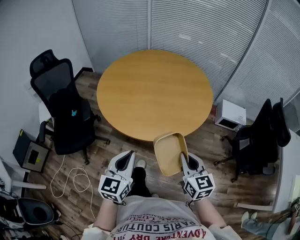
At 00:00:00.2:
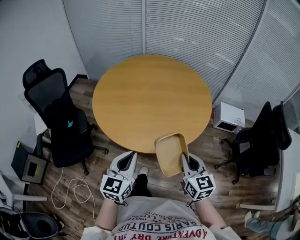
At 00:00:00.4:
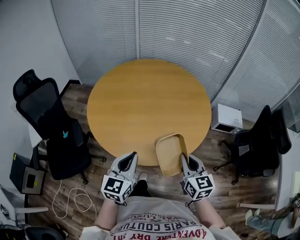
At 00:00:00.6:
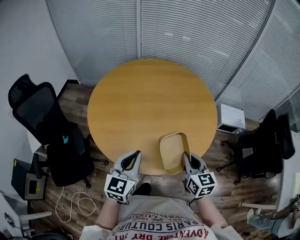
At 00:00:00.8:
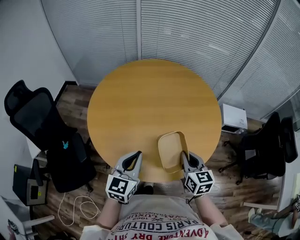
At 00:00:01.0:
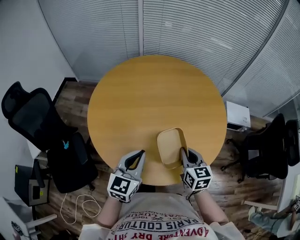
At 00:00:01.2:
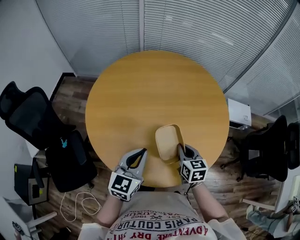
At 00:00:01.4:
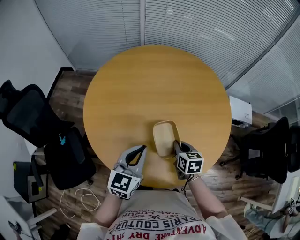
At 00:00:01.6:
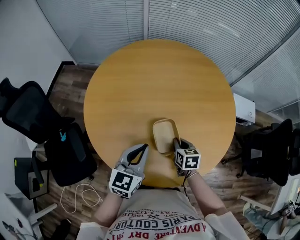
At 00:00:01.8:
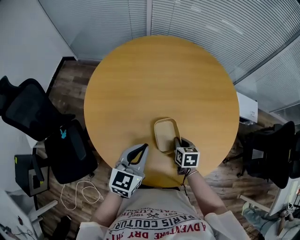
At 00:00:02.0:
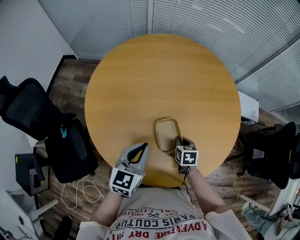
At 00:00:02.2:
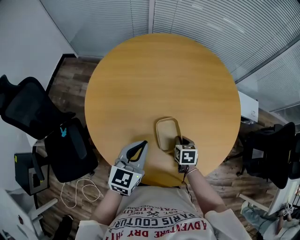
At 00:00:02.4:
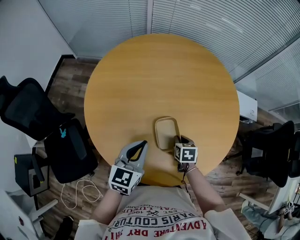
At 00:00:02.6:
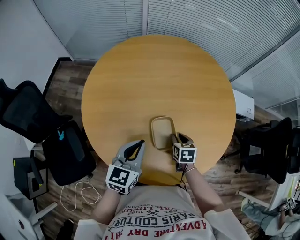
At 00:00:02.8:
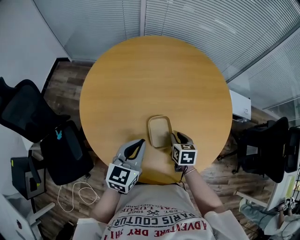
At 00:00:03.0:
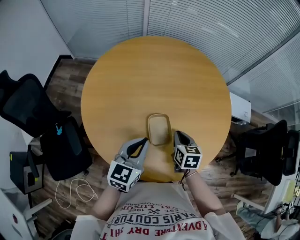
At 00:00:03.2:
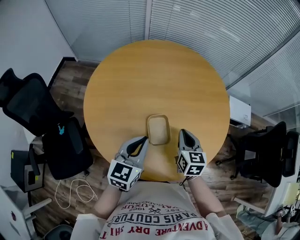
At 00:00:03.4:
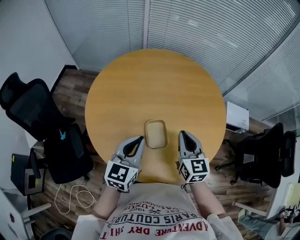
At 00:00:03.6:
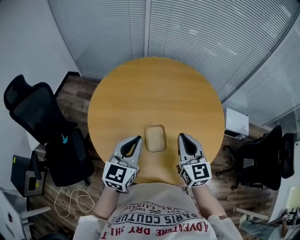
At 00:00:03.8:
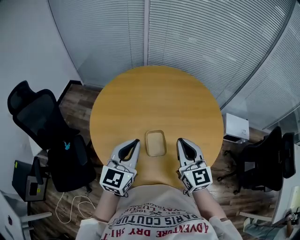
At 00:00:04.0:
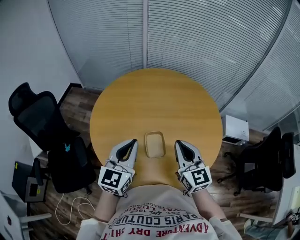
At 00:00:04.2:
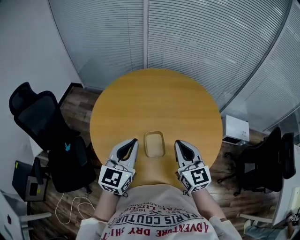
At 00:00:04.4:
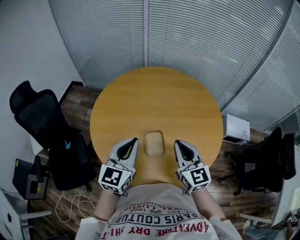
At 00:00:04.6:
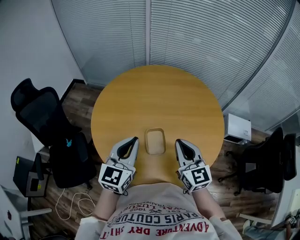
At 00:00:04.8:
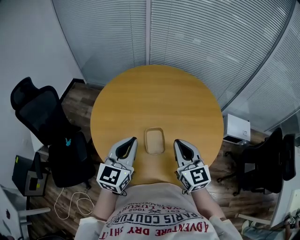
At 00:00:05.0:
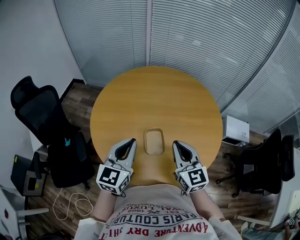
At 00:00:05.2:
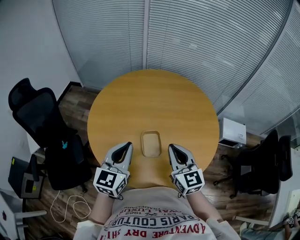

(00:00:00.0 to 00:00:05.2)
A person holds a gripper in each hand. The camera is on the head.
00:00:00.0 - 00:00:01.8: The right gripper travels forward and downward by approximately 50 cm, and tilts its fingers roughly 40 degrees downward; the left gripper travels forward by approximately 40 cm.
00:00:01.8 - 00:00:03.4: The right gripper goes about 25 cm upward, tilts its fingers some 40 degrees upward, and opens, then closes again, while the left gripper moves upward, about 10 cm.
00:00:03.4 - 00:00:05.2: The right gripper heads backward and upward, covering approximately 10 cm; the left gripper moves upward, approximately 5 cm.

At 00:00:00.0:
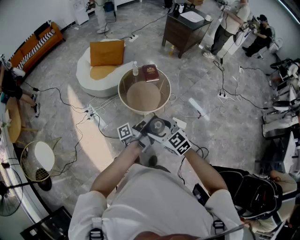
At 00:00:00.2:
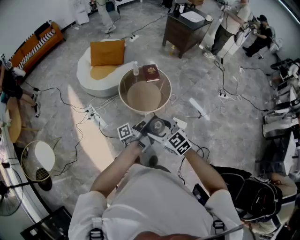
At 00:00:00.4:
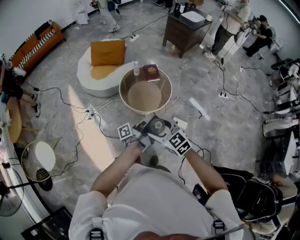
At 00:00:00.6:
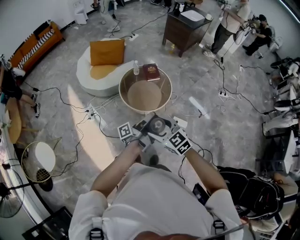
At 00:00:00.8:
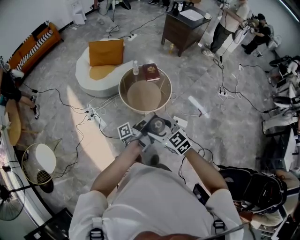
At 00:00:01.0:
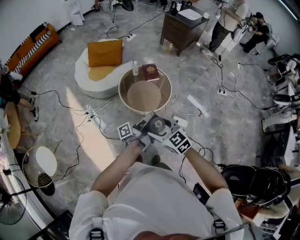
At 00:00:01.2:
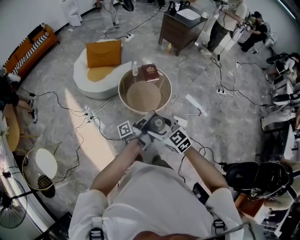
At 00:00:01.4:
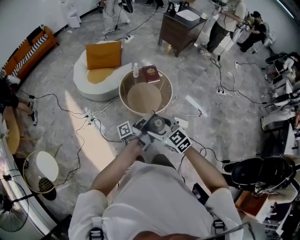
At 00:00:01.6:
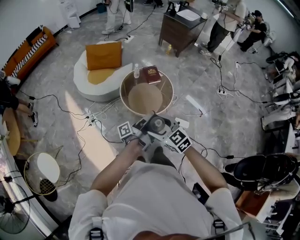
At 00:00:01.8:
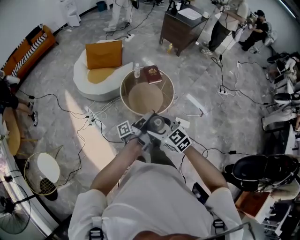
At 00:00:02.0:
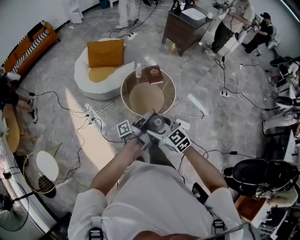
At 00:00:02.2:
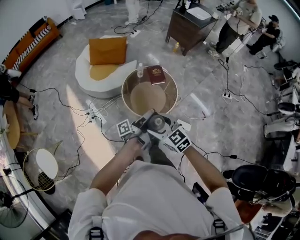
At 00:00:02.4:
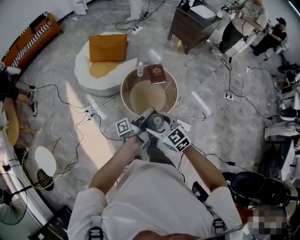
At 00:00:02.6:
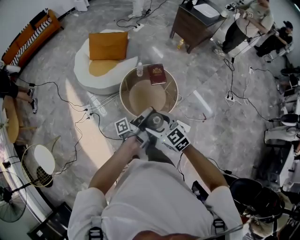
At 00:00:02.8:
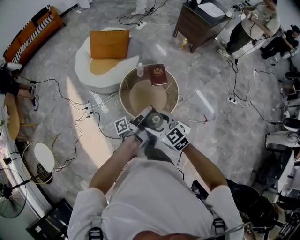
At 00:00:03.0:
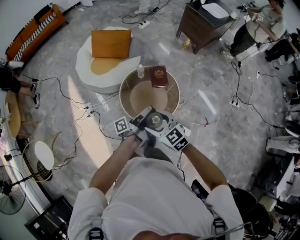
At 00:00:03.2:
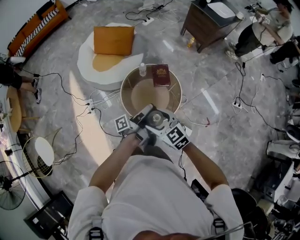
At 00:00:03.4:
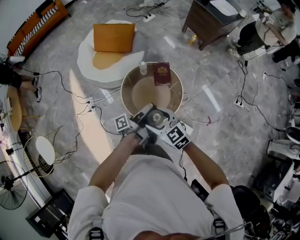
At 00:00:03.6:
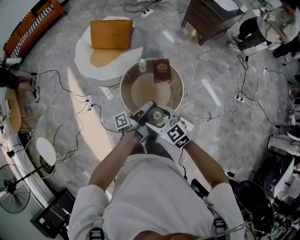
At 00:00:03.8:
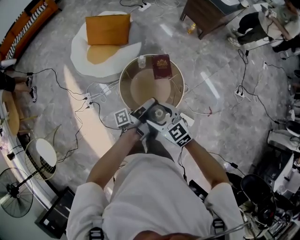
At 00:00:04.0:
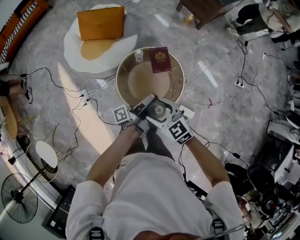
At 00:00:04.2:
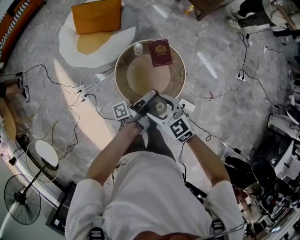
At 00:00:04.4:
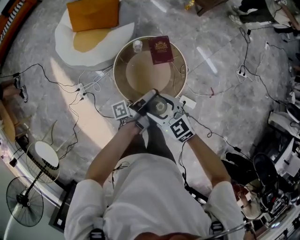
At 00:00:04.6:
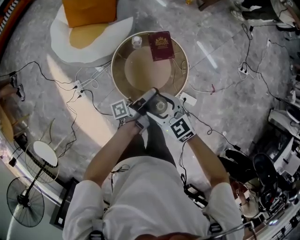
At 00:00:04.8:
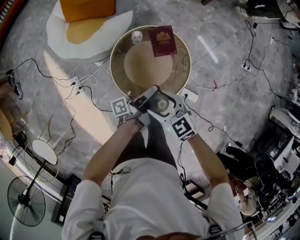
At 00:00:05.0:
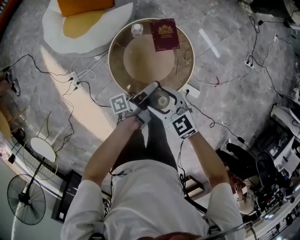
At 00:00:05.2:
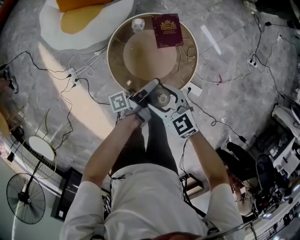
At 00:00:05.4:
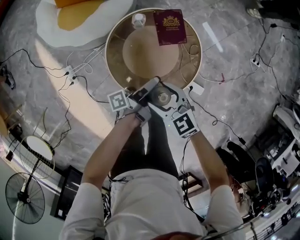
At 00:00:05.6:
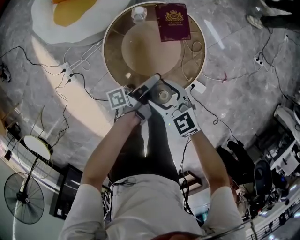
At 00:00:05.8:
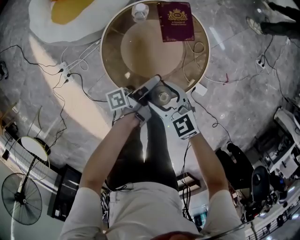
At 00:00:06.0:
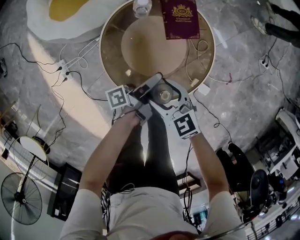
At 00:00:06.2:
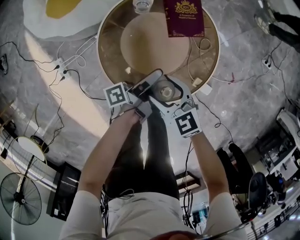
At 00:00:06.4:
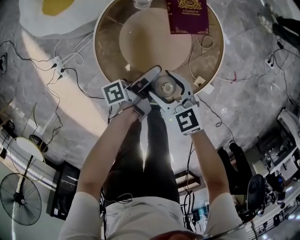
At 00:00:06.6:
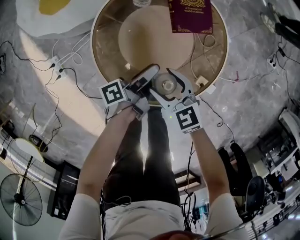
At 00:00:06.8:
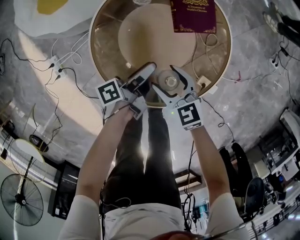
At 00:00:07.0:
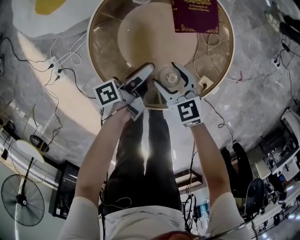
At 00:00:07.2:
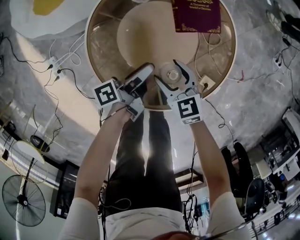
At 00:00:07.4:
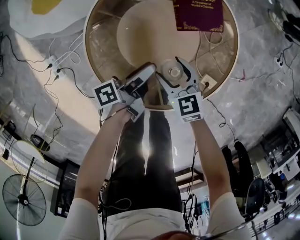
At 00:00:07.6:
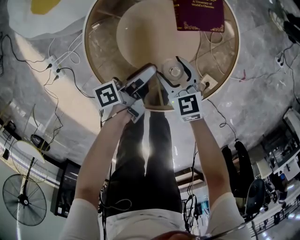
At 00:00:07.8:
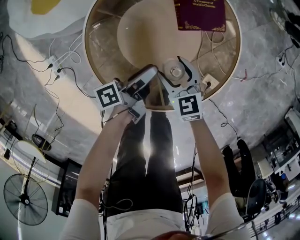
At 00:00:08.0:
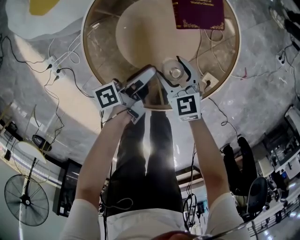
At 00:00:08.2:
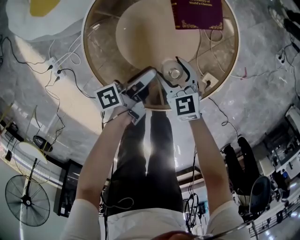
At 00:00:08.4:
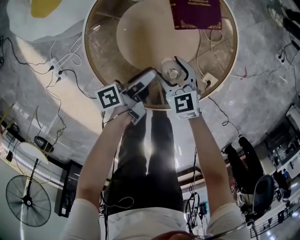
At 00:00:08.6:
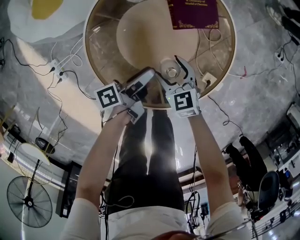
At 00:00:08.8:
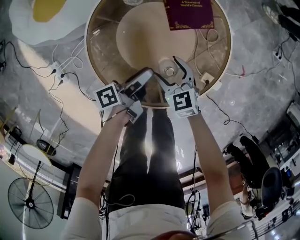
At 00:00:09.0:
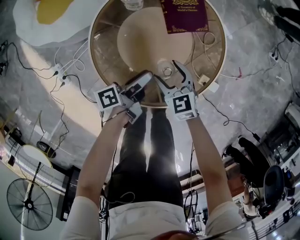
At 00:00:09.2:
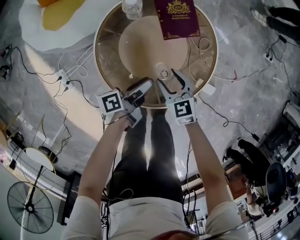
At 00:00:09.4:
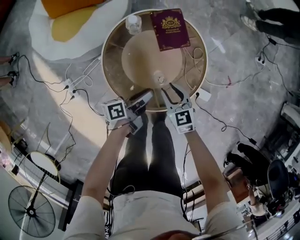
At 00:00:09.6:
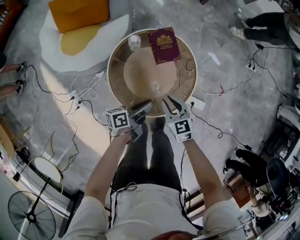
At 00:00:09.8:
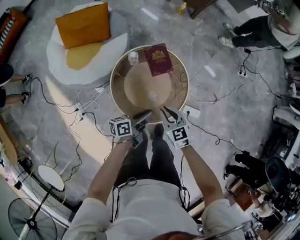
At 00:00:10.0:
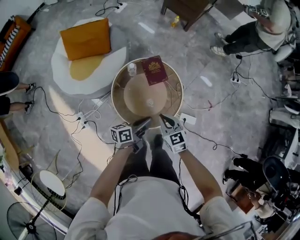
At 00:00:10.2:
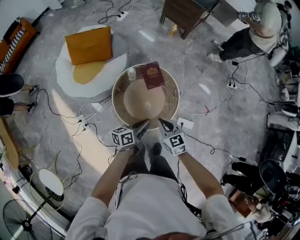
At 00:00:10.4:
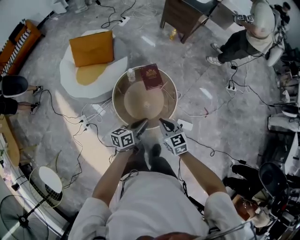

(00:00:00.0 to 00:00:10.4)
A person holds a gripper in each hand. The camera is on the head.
00:00:00.0 - 00:00:01.4: The right gripper ends up some 10 cm from where it was.
00:00:01.4 - 00:00:03.0: The right gripper ends up about 25 cm from where it was.
00:00:03.0 - 00:00:04.4: The right gripper shifts by about 20 cm.
00:00:04.4 - 00:00:06.0: The right gripper shifts some 35 cm downward.
00:00:06.0 - 00:00:07.4: The right gripper moves downward, approximately 20 cm.
00:00:09.0 - 00:00:10.4: The right gripper is displaced upward by about 50 cm, and closes up.

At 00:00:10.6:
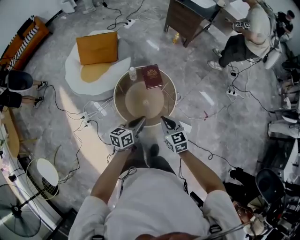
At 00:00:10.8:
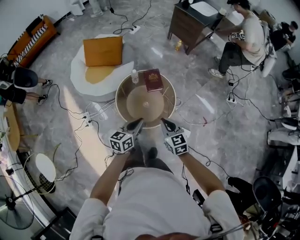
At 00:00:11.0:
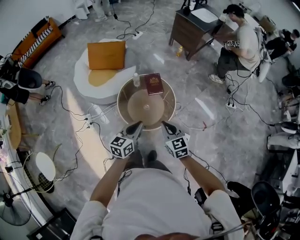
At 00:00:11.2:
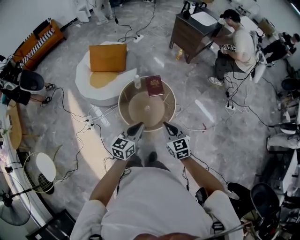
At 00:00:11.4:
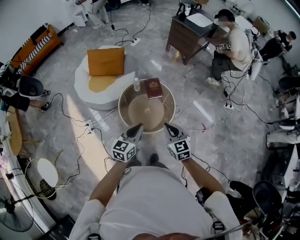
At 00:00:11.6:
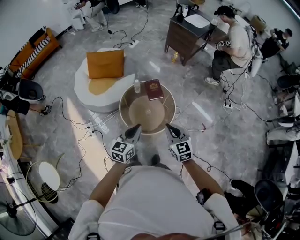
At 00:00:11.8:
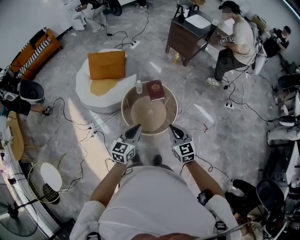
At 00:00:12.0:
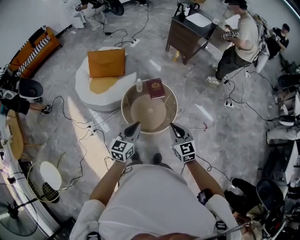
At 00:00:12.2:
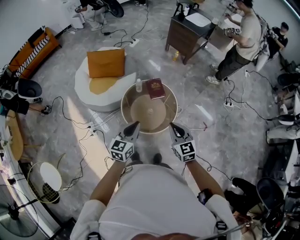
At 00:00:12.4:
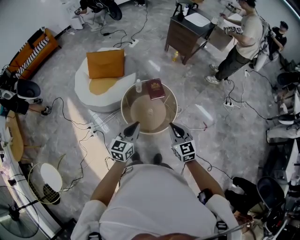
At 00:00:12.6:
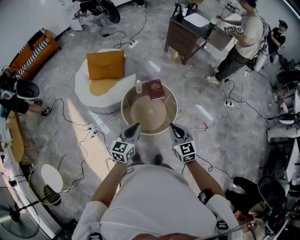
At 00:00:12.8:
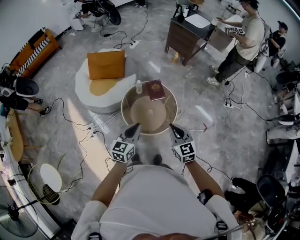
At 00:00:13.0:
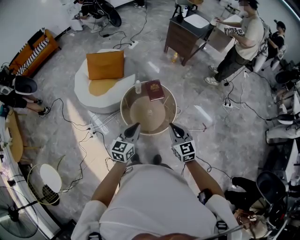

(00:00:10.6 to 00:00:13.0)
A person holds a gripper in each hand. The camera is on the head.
00:00:10.6 - 00:00:11.8: The right gripper shifts some 15 cm upward.

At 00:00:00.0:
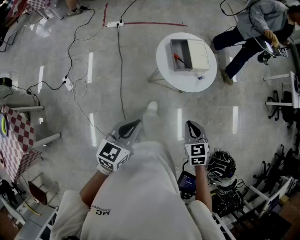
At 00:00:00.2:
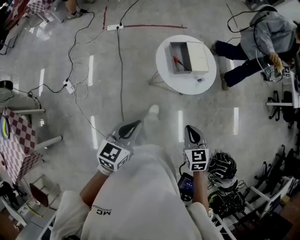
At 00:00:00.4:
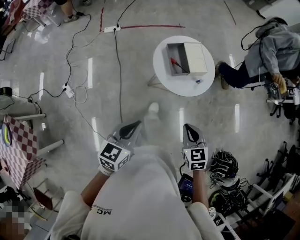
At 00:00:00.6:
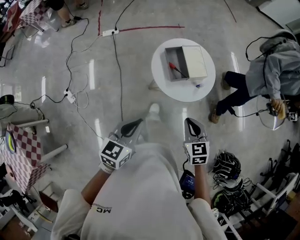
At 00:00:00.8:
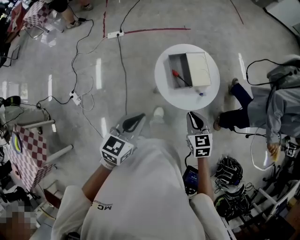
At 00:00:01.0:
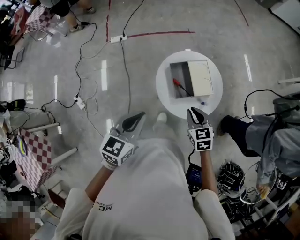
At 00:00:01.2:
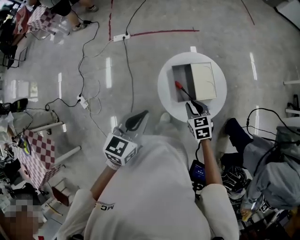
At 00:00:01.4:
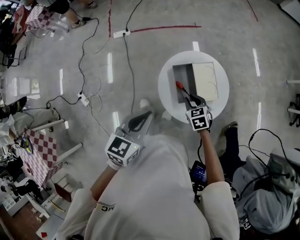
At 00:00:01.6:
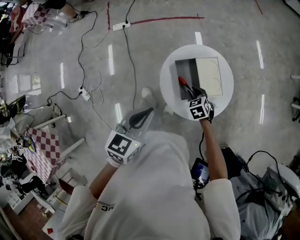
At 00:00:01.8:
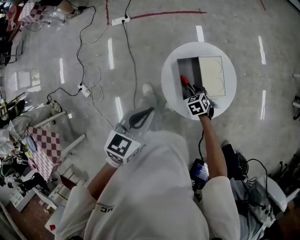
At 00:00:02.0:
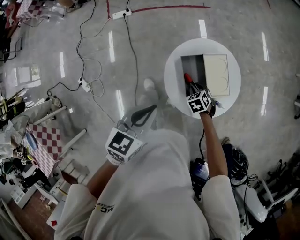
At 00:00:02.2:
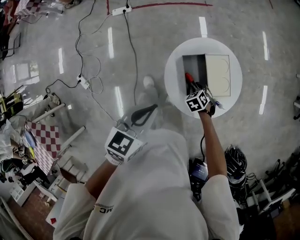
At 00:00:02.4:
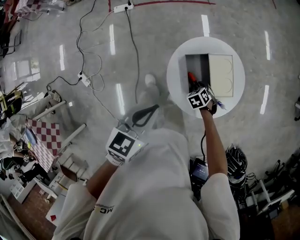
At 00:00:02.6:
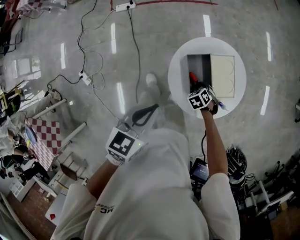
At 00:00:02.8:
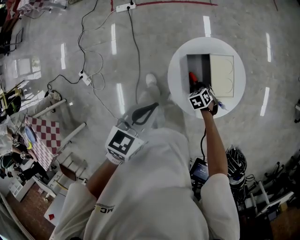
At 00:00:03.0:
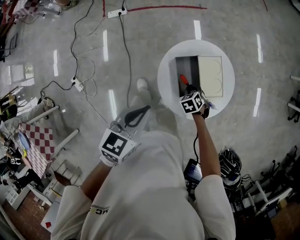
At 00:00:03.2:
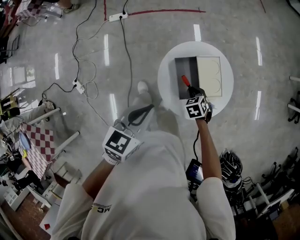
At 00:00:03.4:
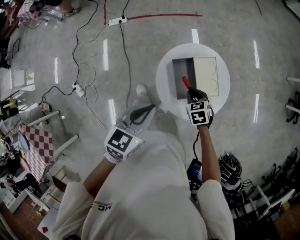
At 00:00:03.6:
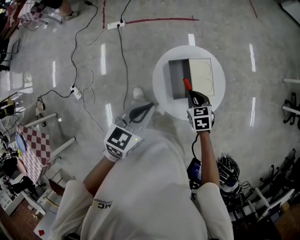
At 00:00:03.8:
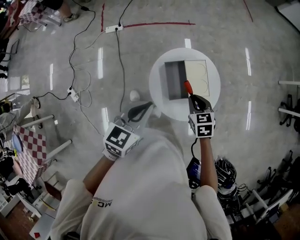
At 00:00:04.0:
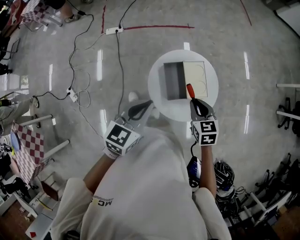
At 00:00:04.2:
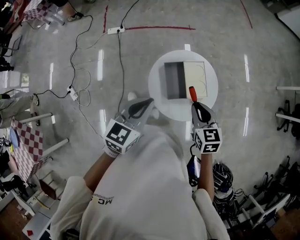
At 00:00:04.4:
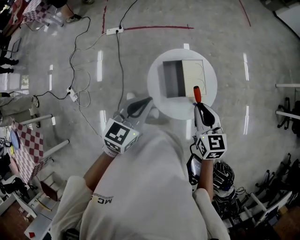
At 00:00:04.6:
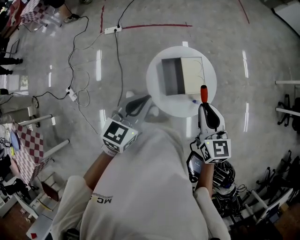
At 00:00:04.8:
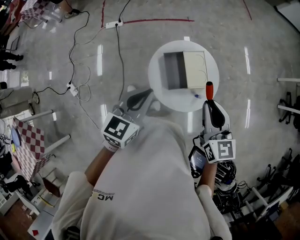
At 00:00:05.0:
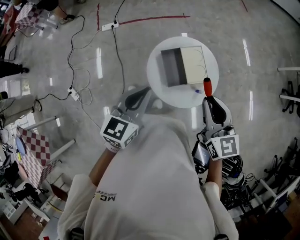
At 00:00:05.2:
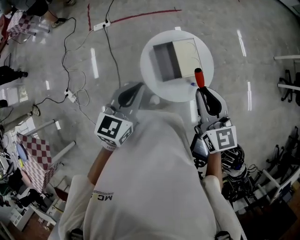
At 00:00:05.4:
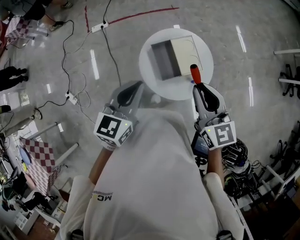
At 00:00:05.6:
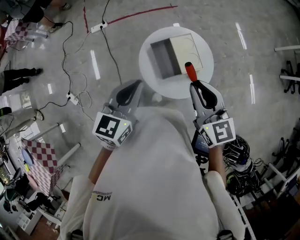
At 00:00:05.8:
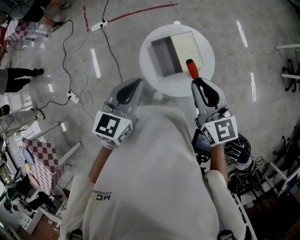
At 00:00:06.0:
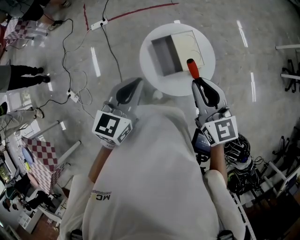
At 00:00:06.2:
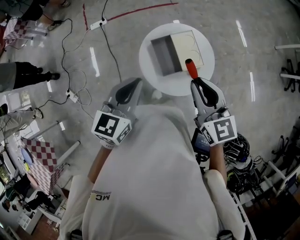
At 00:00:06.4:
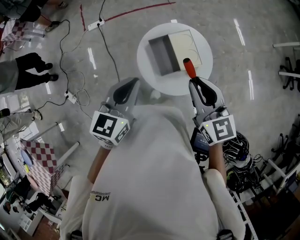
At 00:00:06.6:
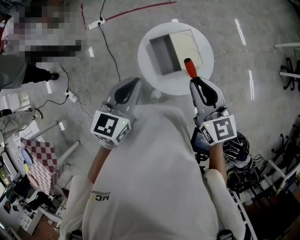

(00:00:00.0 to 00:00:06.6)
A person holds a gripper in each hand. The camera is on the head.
00:00:00.0 - 00:00:01.6: Both grippers are carried forward, about 40 cm. The right gripper opens up.
00:00:01.6 - 00:00:03.2: The right gripper goes downward and returns, about 10 cm each way.
00:00:03.2 - 00:00:05.0: The right gripper shifts some 35 cm upward, and angles its fingers upward, by approximately 50 degrees, while the left gripper travels upward and backward by some 10 cm.
00:00:05.0 - 00:00:06.6: There are only small adjustments of the grippers.
